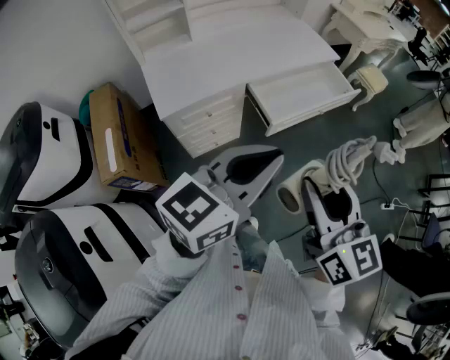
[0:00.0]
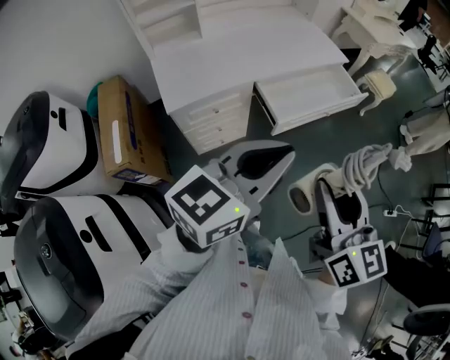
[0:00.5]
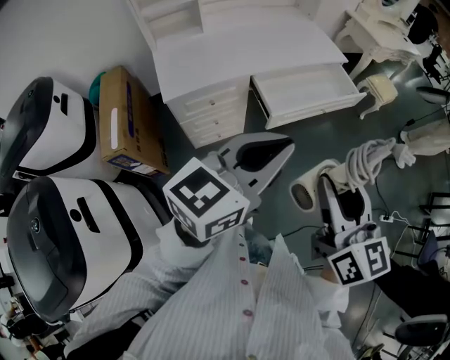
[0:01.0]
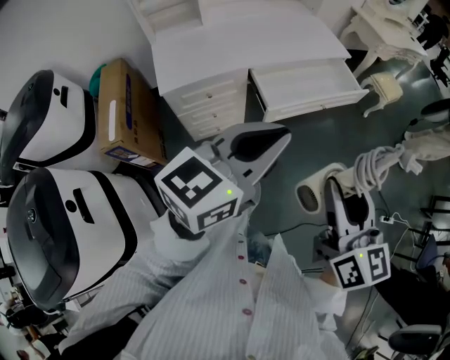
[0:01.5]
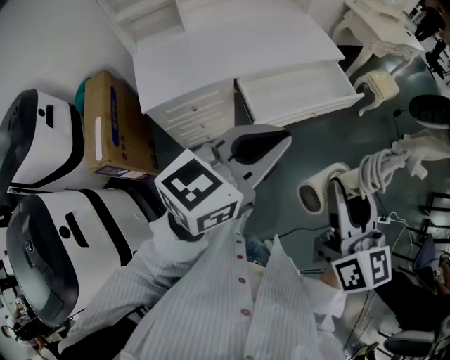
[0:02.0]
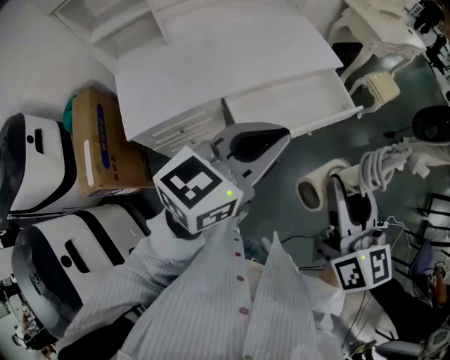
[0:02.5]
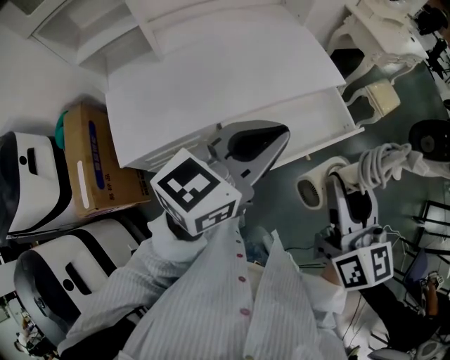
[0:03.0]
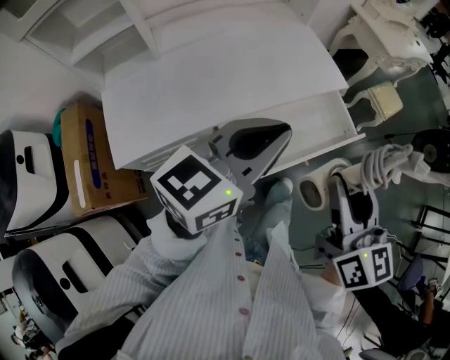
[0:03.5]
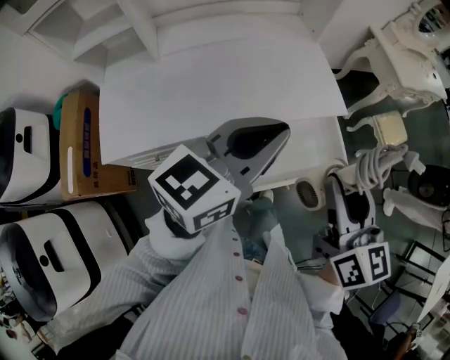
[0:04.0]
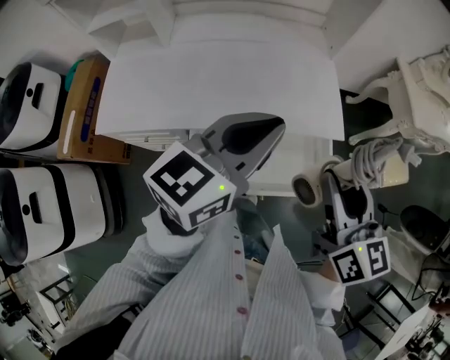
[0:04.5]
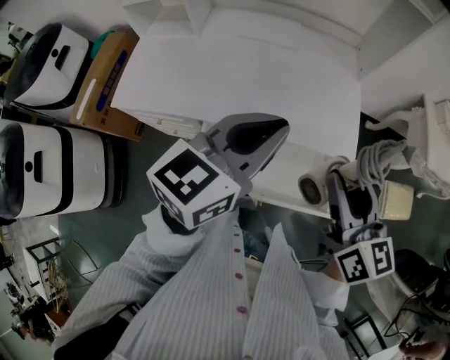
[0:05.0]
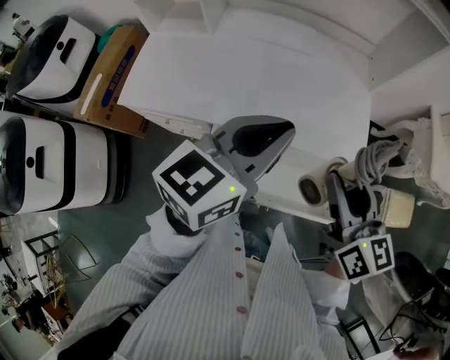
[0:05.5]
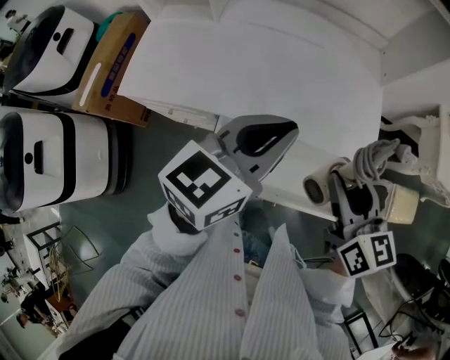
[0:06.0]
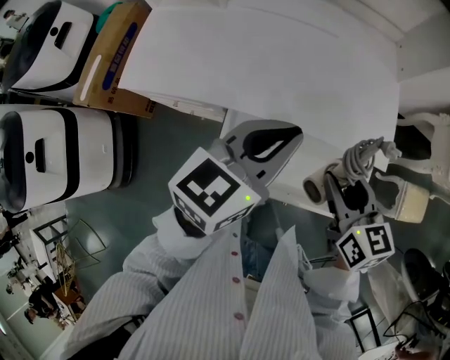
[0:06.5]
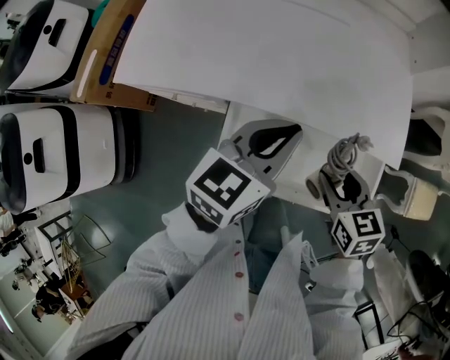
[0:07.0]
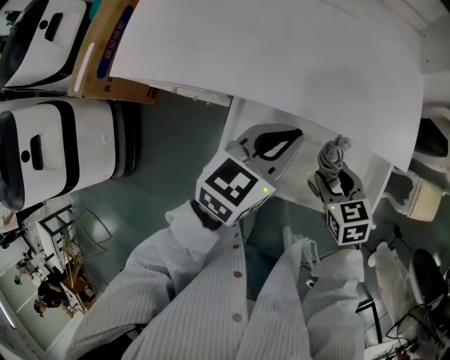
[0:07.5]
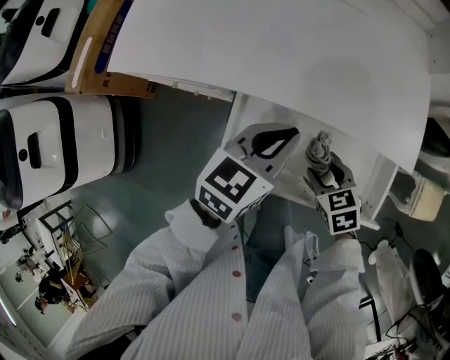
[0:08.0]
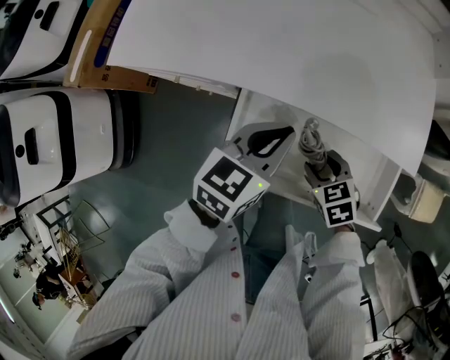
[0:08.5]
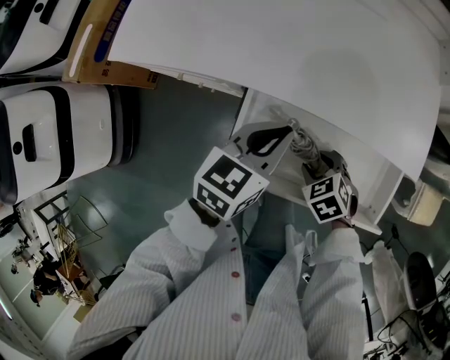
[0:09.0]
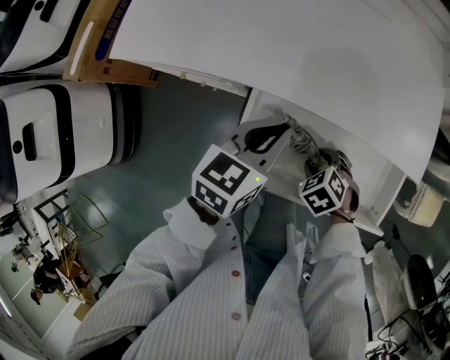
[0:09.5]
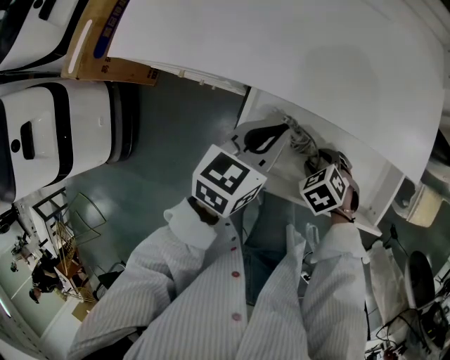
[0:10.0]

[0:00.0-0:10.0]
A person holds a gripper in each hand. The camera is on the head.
0:00.0 to 0:02.0: The right gripper shifts some 15 cm to the right and forward, while the left gripper shifts approximately 10 cm forward and to the right.
0:02.0 to 0:04.0: Both grippers travel together forward, approximately 35 cm.
0:04.0 to 0:06.0: The left gripper changes place by about 10 cm, and rotates roughly 30 degrees. The right gripper changes place by some 15 cm, and changes its angle by some 30 degrees.
0:06.0 to 0:08.0: Both grippers travel together downward, roughly 25 cm. The right gripper angles its fingers downward, by roughly 40 degrees.
0:08.0 to 0:10.0: The left gripper changes place by some 5 cm; the right gripper is displaced downward by about 5 cm, and turns by roughly 30 degrees.

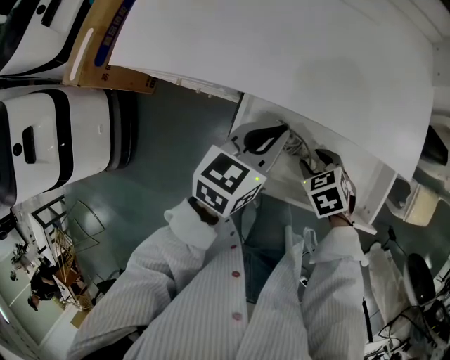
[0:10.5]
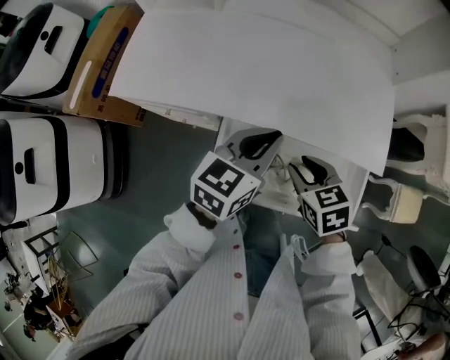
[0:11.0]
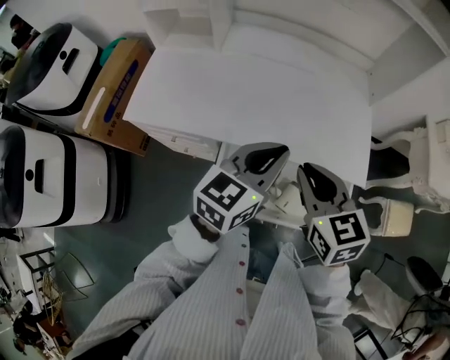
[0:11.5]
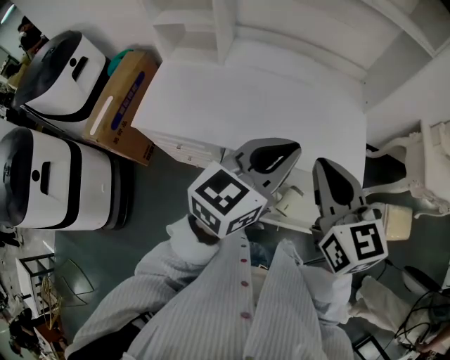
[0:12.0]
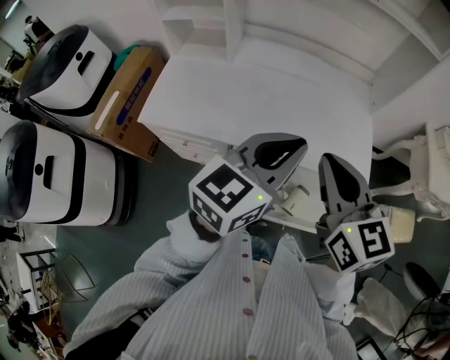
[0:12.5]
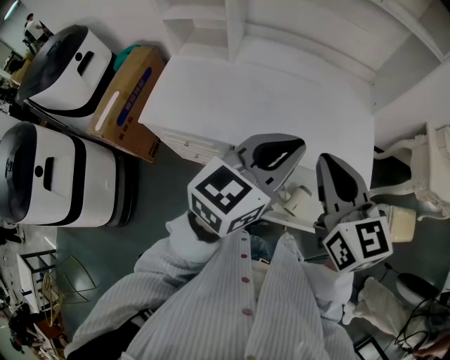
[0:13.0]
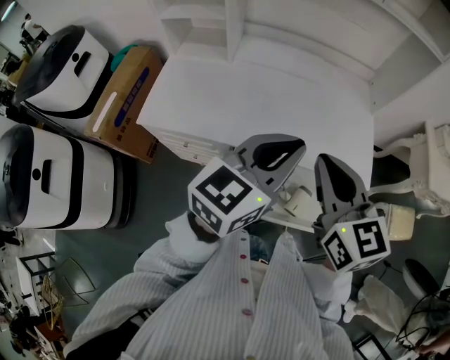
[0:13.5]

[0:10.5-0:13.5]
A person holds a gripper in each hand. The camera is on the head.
0:10.5 to 0:12.0: The right gripper is displaced upward by approximately 40 cm, tilts its fingers some 60 degrees upward, and closes its fingers. Meanwhile the left gripper is displaced upward by approximately 25 cm, and turns by approximately 30 degrees.
0:12.0 to 0:13.5: The grippers stay close to where they were, moving slightly.

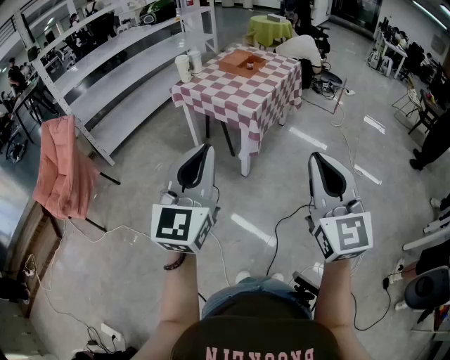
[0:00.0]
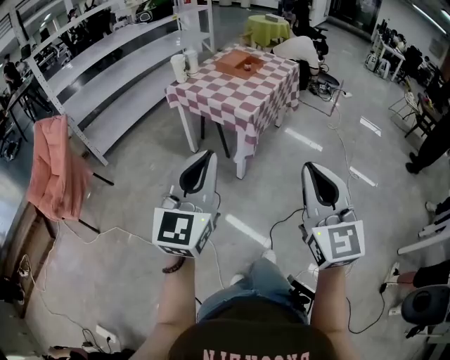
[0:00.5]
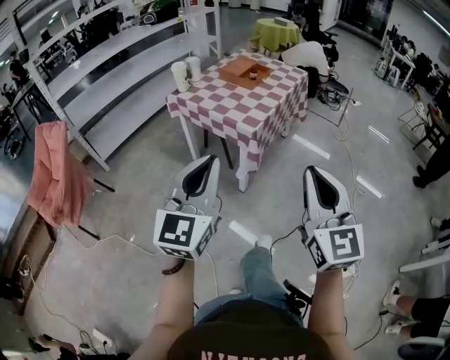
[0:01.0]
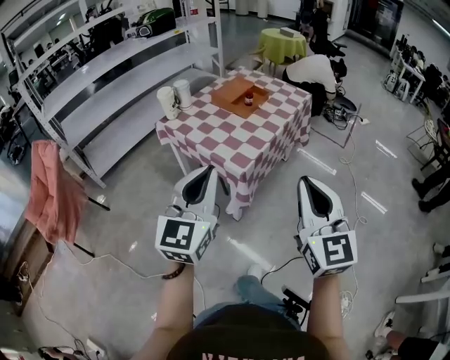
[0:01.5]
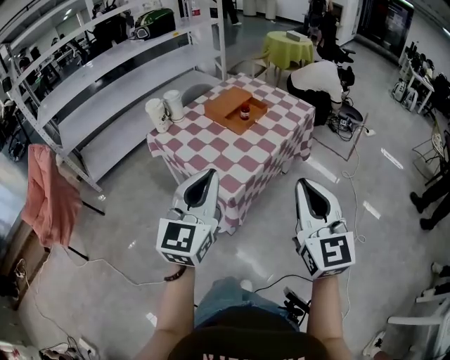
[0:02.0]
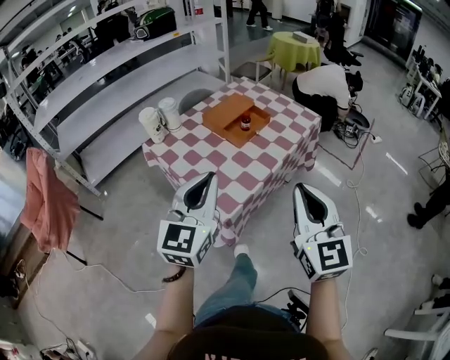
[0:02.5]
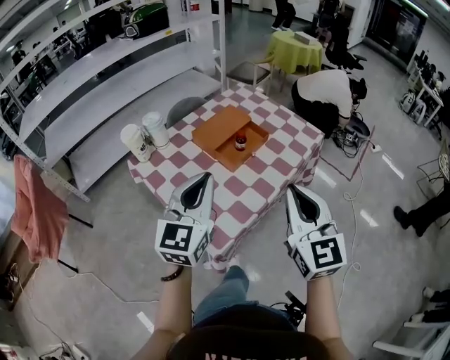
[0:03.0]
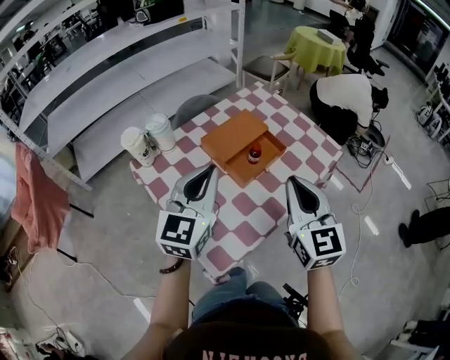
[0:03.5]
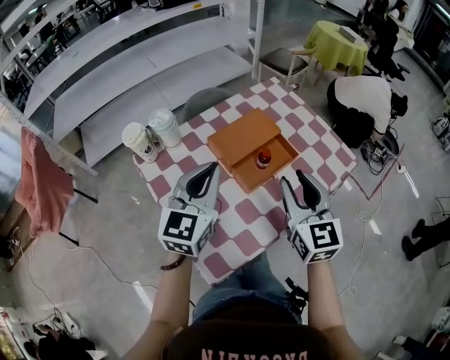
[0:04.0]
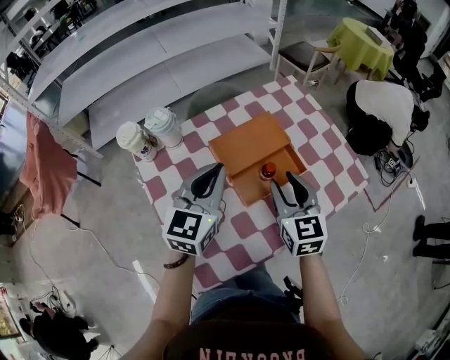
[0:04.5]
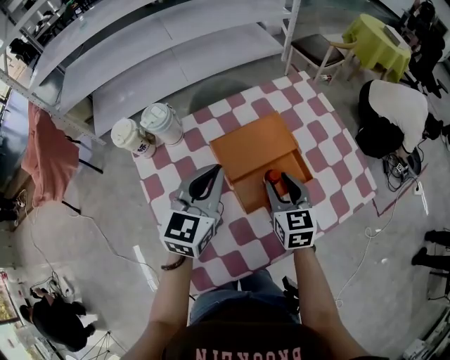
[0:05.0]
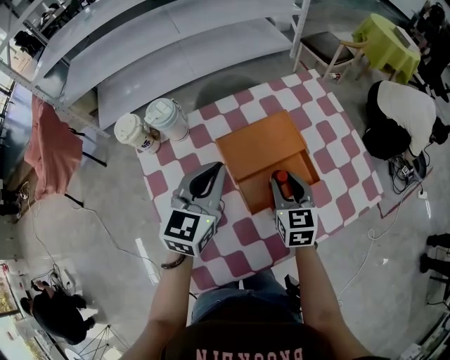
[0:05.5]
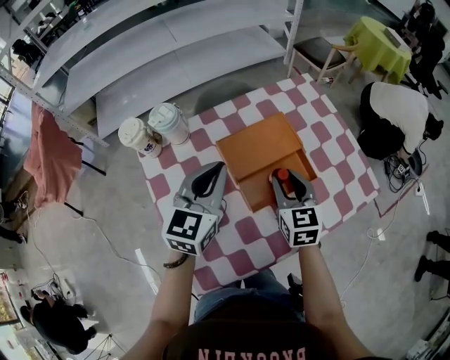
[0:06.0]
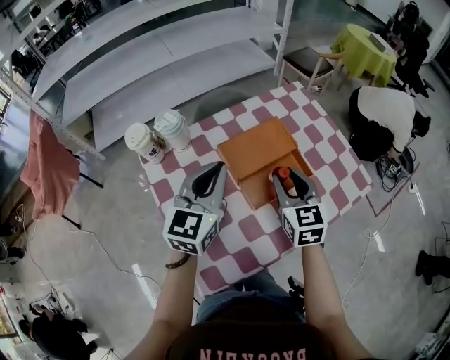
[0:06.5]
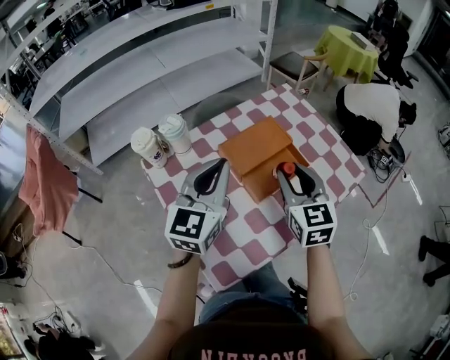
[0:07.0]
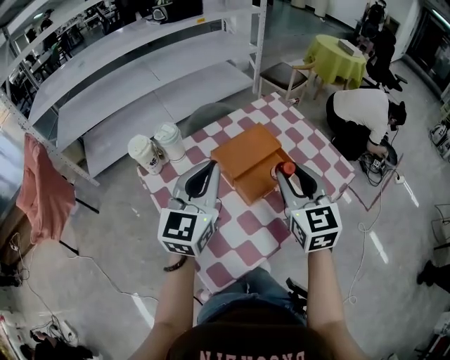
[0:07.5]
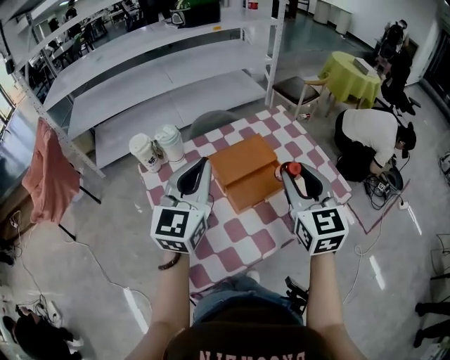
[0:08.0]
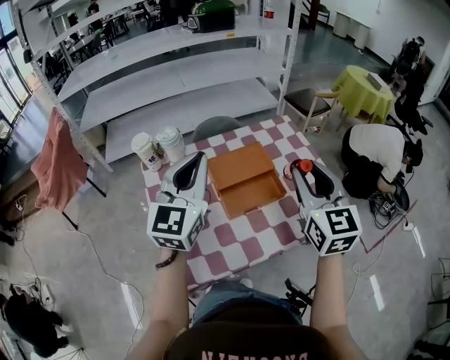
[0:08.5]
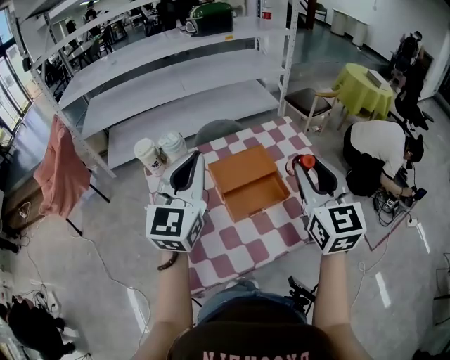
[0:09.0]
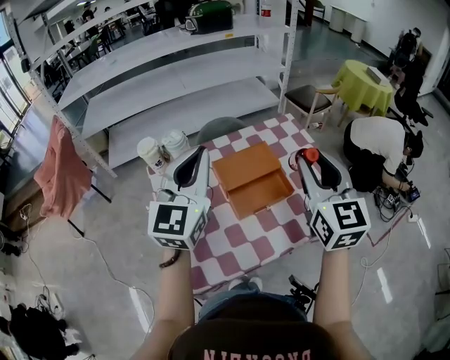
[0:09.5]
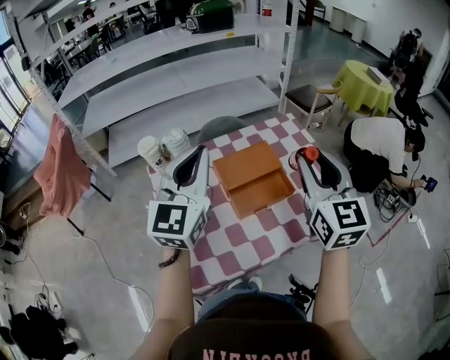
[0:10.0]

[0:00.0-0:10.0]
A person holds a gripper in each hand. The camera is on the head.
0:00.0 to 0:02.0: Both grippers are carried forward, approximately 40 cm.
0:02.0 to 0:04.0: Both grippers move forward, approximately 40 cm. The right gripper opens.
0:04.0 to 0:06.0: The right gripper goes roughly 20 cm downward and forward; the left gripper is displaced forward and downward by approximately 10 cm.
0:06.0 to 0:08.0: The right gripper goes roughly 20 cm upward and backward; the left gripper goes roughly 15 cm upward and backward.
0:08.0 to 0:10.0: The grippers both shift upward by some 5 cm.

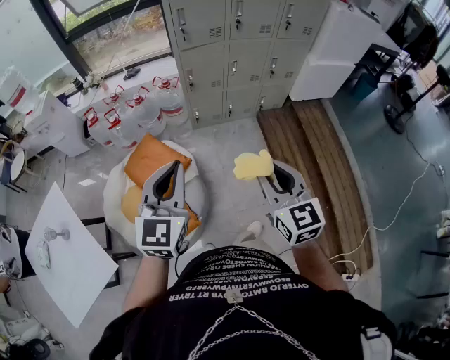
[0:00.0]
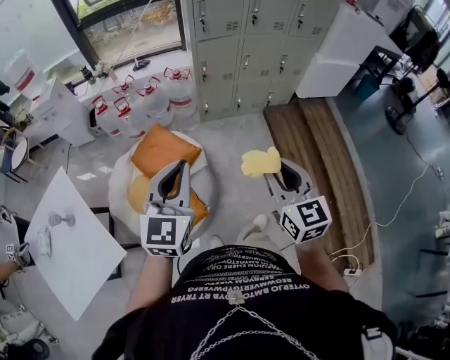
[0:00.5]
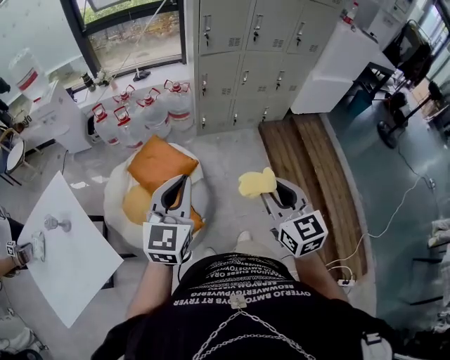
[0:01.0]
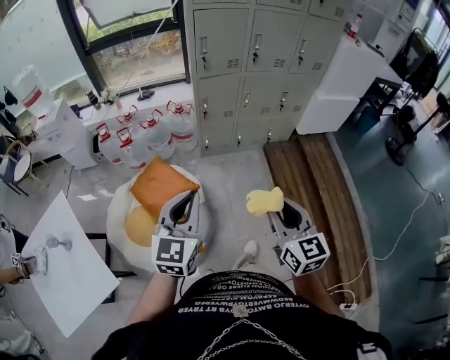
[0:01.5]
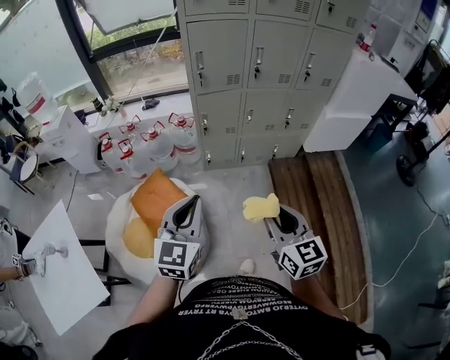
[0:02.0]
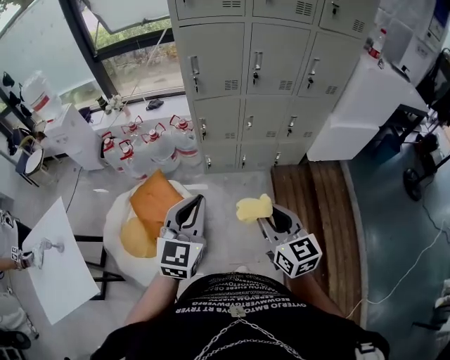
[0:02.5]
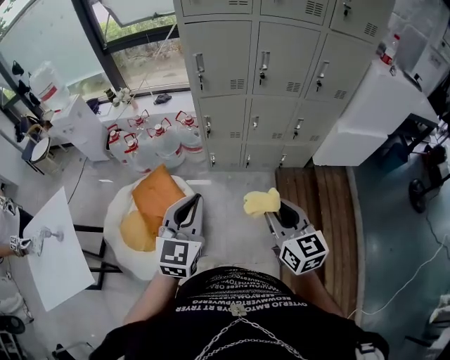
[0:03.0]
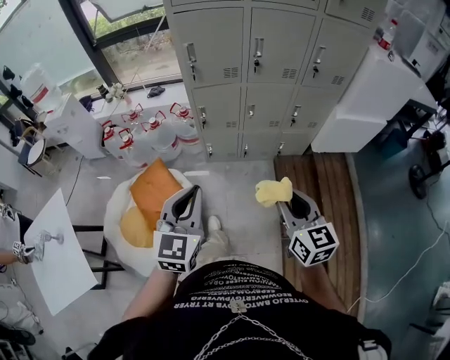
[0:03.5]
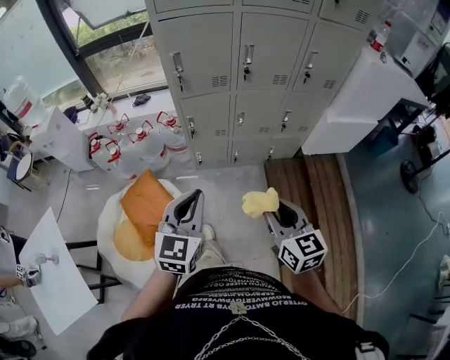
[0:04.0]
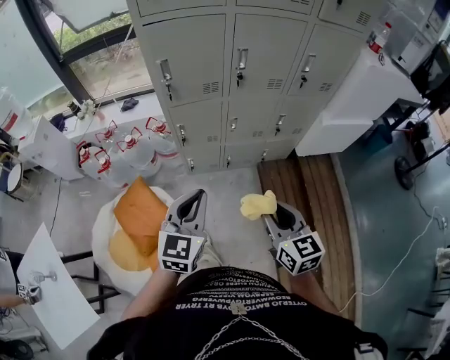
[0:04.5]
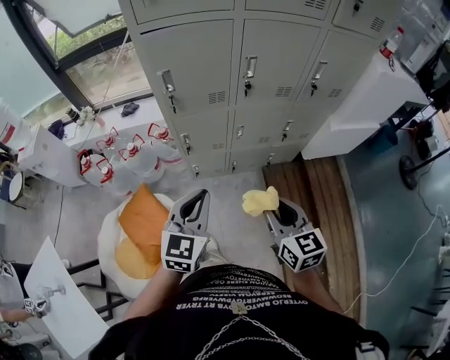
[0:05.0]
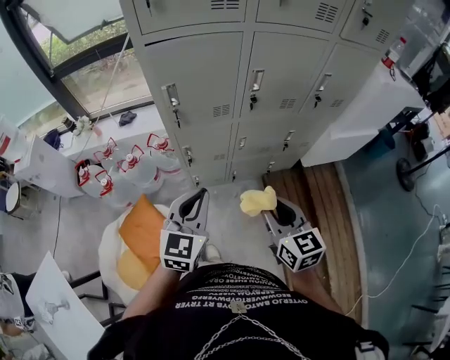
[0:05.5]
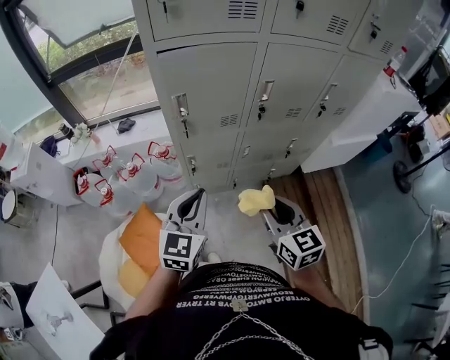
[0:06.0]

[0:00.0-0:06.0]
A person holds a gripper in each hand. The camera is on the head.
0:00.0 to 0:02.0: The grippers both shift forward and to the right by approximately 10 cm.
0:02.0 to 0:04.0: The two grippers go some 15 cm forward and to the right.
0:04.0 to 0:06.0: The left gripper heads forward, covering approximately 25 cm. The right gripper goes some 25 cm forward and to the left.
